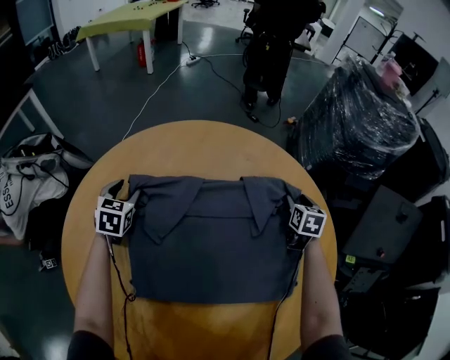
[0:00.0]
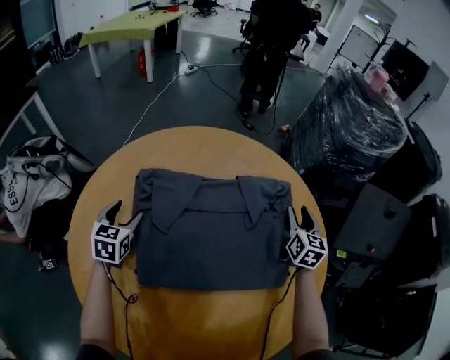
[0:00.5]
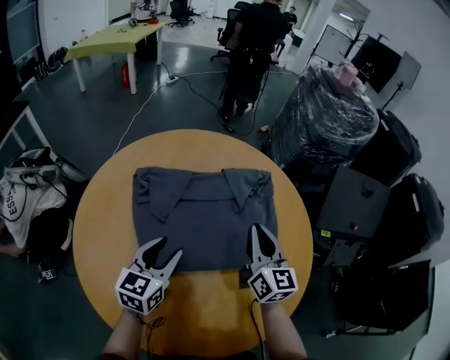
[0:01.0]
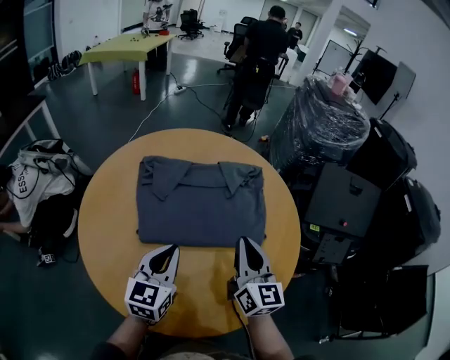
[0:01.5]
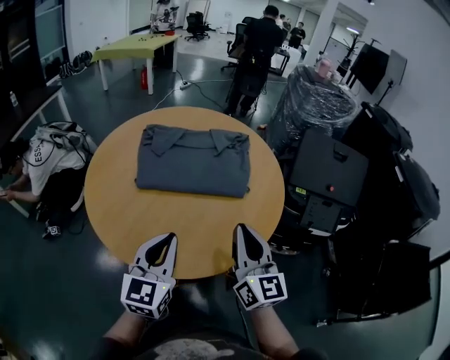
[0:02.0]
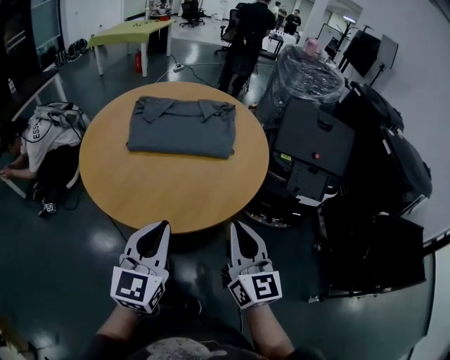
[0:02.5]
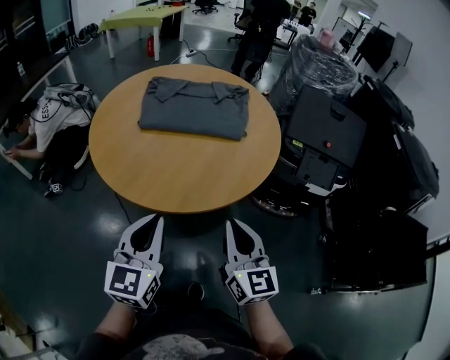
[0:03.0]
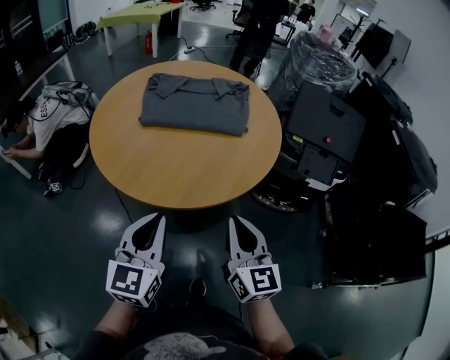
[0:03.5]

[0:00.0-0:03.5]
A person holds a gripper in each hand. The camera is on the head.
0:00.0 to 0:02.0: The pair of grippers is taken backward, some 60 cm. The left gripper tilts its fingers roughly 30 degrees upward, and closes up; the right gripper is displaced upward by about 25 cm, points its fingers about 50 degrees further upward, and closes its fingers.
0:02.0 to 0:03.5: Both grippers travel together backward, about 20 cm.

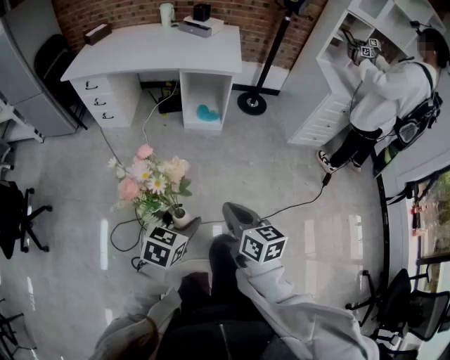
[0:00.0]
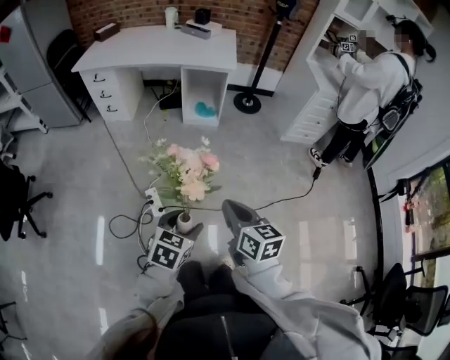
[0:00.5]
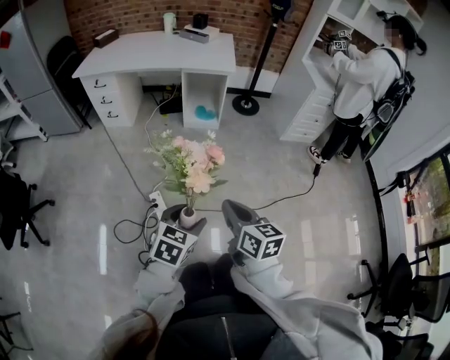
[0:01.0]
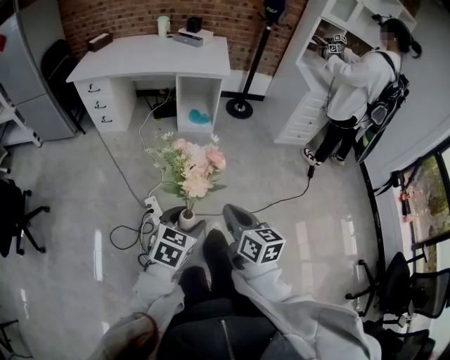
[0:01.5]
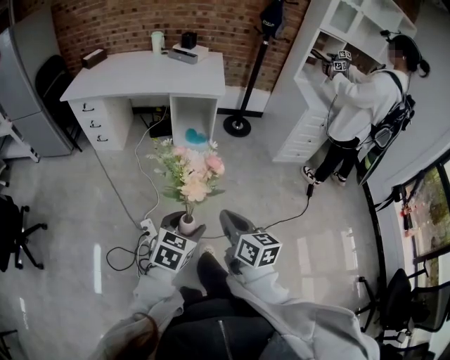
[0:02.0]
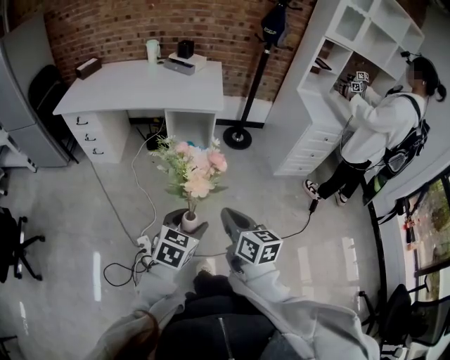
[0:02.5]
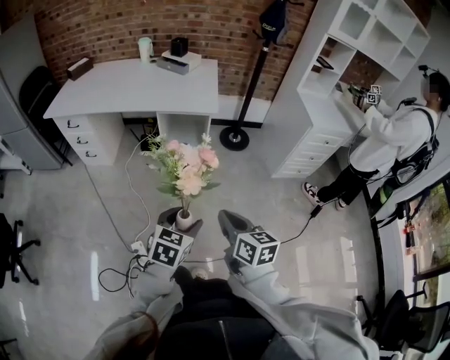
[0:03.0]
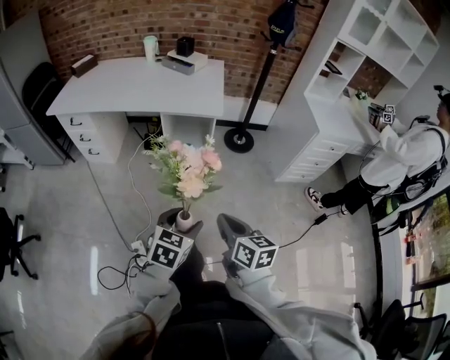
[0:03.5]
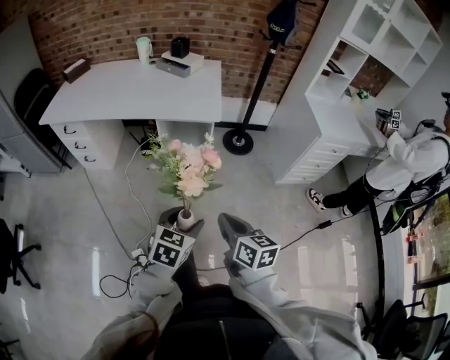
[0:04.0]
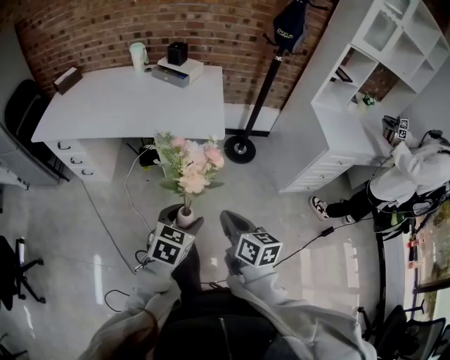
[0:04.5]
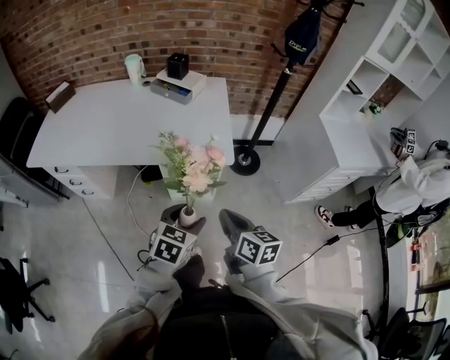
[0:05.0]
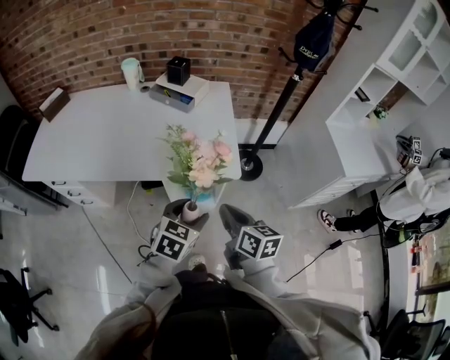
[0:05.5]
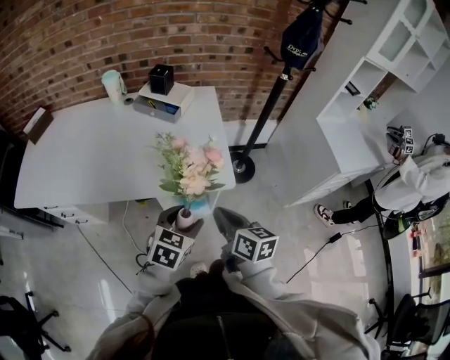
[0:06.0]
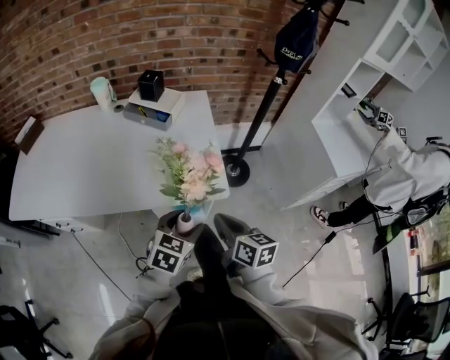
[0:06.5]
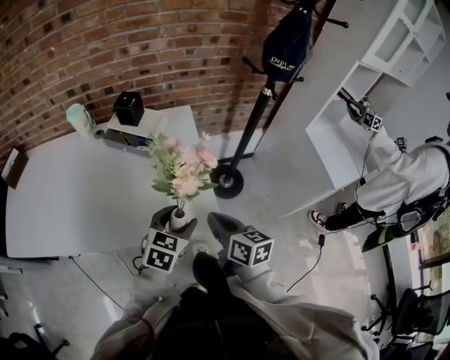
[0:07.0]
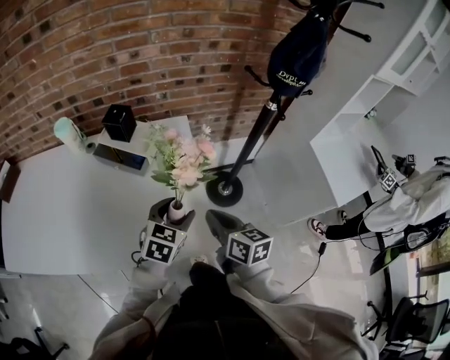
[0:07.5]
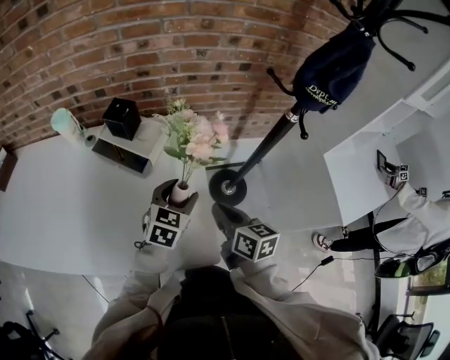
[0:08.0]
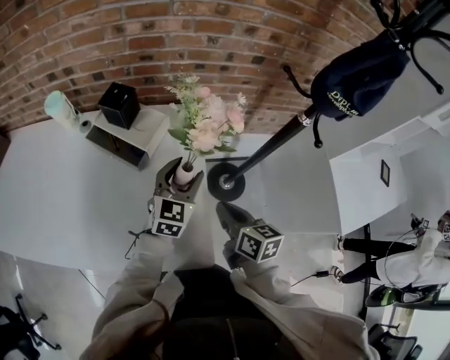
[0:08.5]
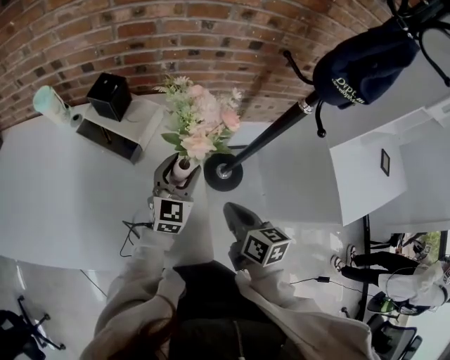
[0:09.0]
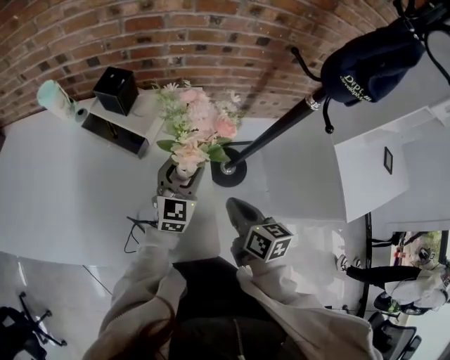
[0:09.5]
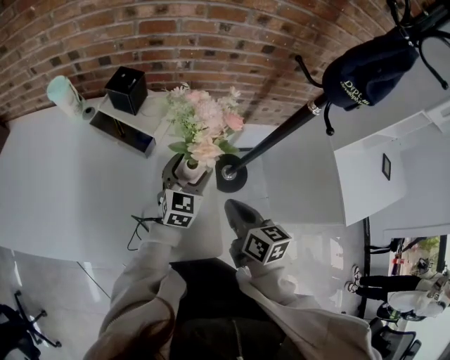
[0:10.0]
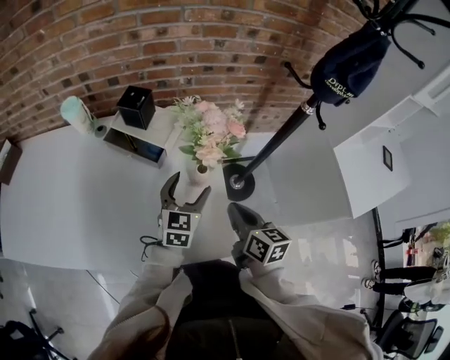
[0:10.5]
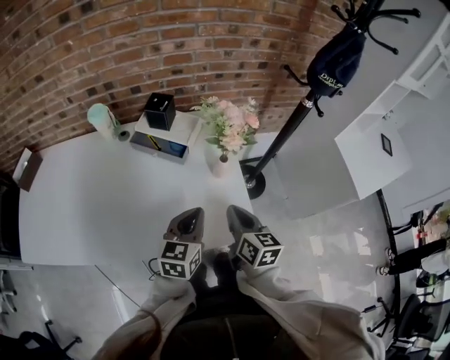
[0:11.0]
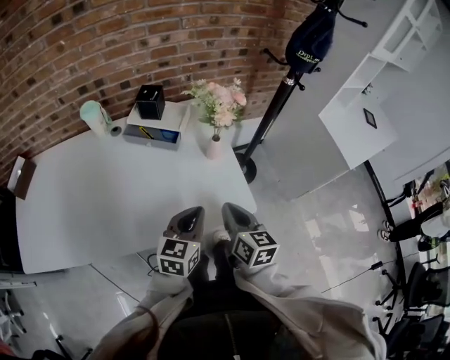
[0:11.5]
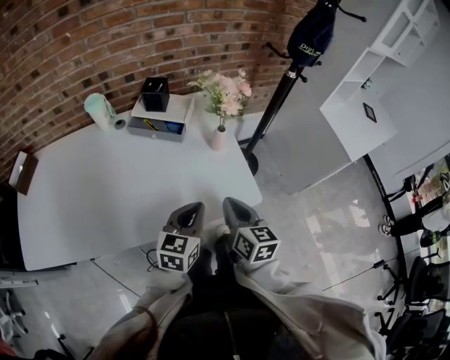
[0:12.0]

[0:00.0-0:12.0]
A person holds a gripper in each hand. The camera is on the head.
0:00.0 to 0:02.0: The left gripper goes backward and returns, about 15 cm each way. The right gripper reaches approximately 15 cm backward, then returns.
0:02.0 to 0:04.0: The two grippers go roughly 30 cm forward.
0:04.0 to 0:06.0: The pair of grippers is taken forward, about 40 cm.
0:06.0 to 0:08.0: Both grippers travel together forward, some 35 cm.
0:08.0 to 0:10.0: The left gripper moves downward and forward, some 10 cm.
0:10.0 to 0:12.0: Both grippers move backward and to the left, about 30 cm. The left gripper rotates some 20 degrees, and closes up; the right gripper turns by roughly 20 degrees.

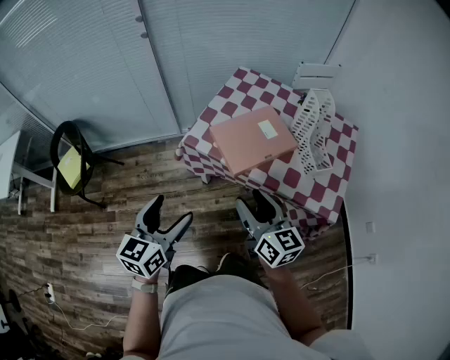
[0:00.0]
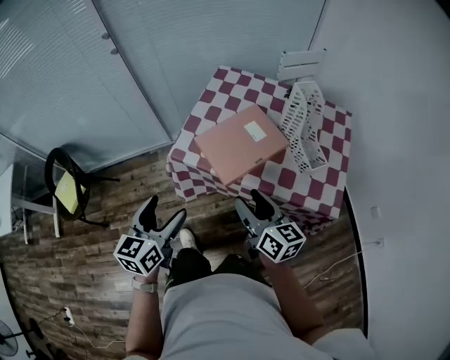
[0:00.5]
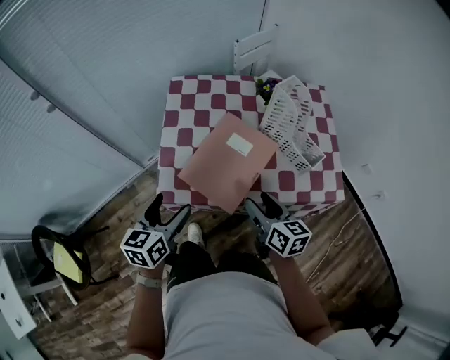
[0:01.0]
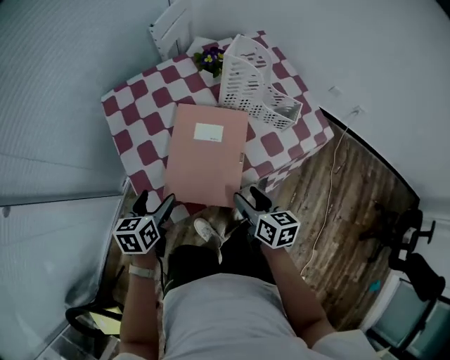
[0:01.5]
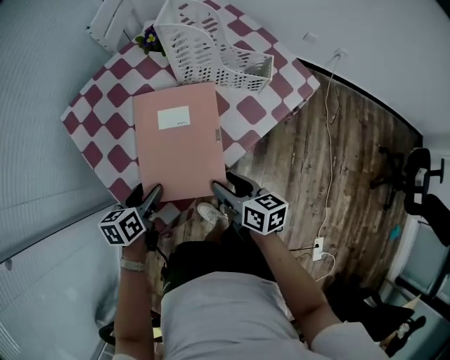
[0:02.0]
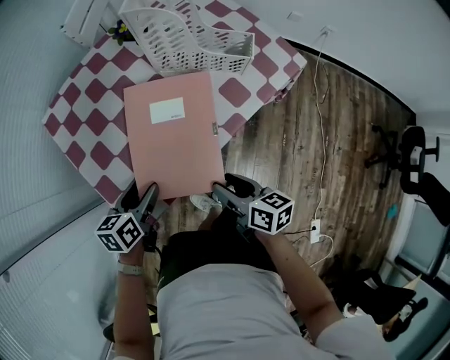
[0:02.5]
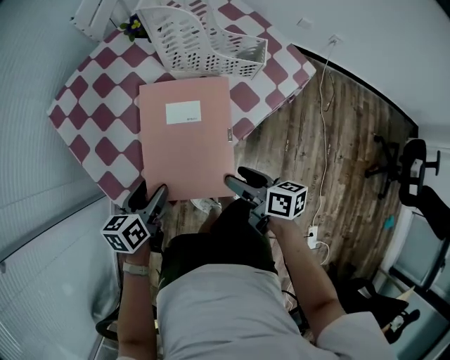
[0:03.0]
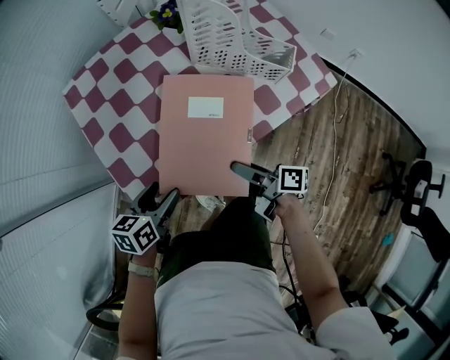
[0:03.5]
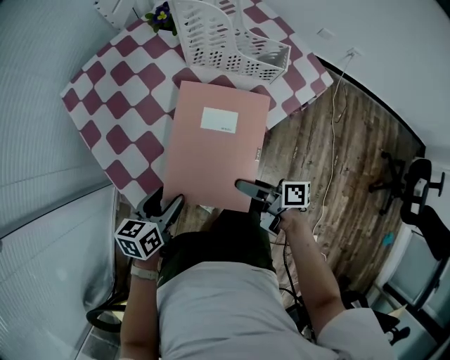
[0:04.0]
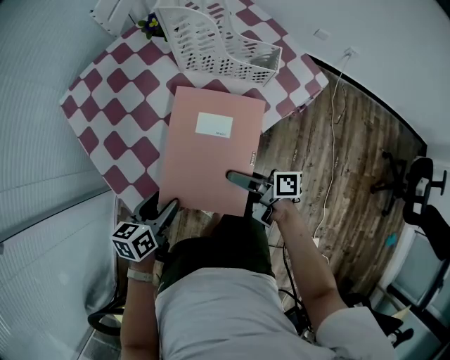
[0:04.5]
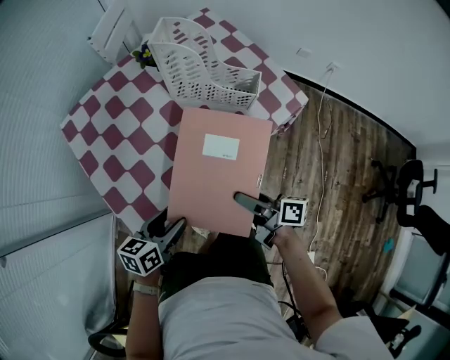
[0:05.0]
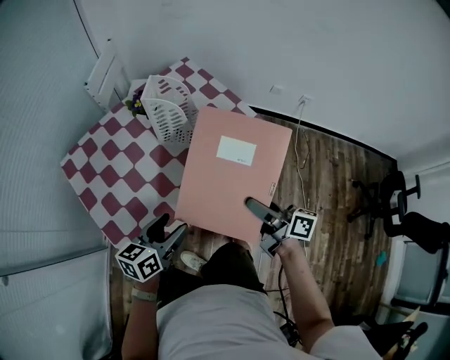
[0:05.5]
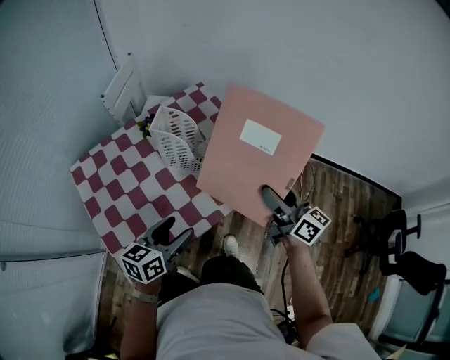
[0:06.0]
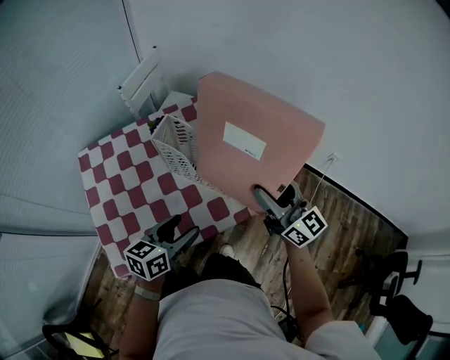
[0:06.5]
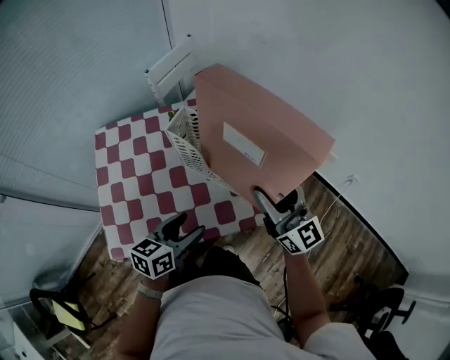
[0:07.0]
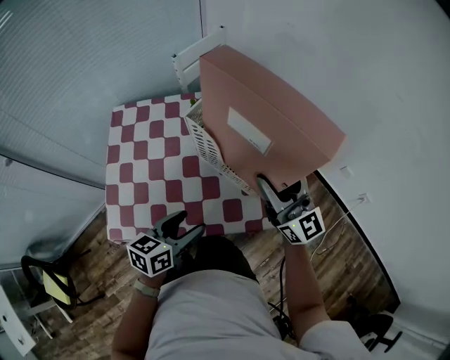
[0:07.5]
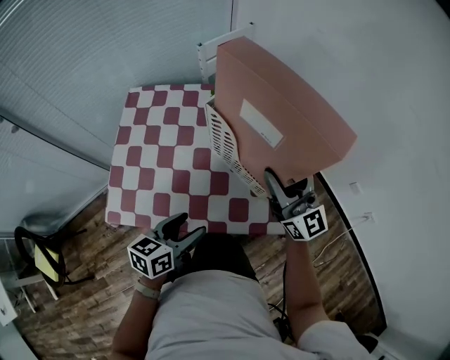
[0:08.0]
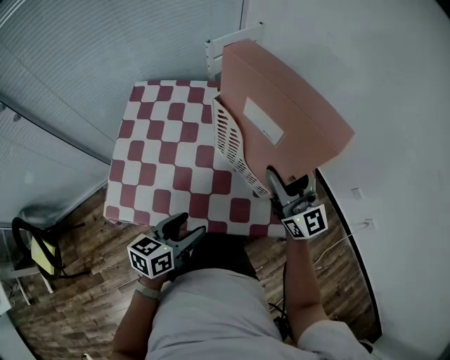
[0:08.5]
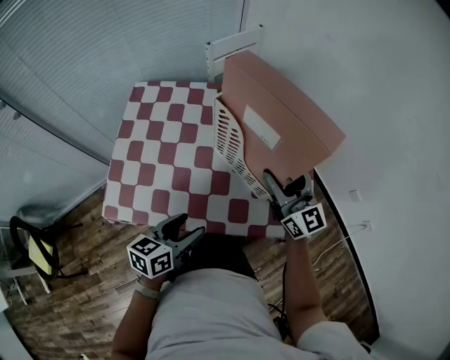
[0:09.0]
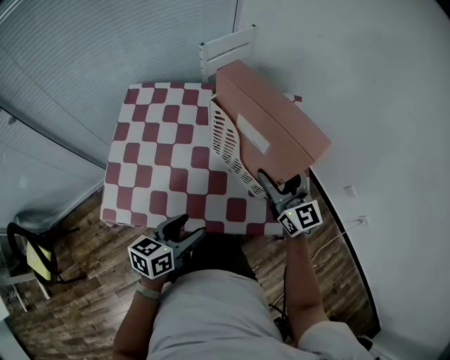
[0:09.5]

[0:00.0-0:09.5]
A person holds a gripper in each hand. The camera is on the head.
0:00.0 to 0:02.0: The right gripper moves downward, some 25 cm, and swivels some 60 degrees; the left gripper moves approximately 50 cm, and changes its angle by some 70 degrees.
0:02.0 to 0:04.0: The right gripper swings forward and backward, some 5 cm each way, with 2 reversals, and rotates approximately 50 degrees; the left gripper shifts roughly 10 cm backward and to the right.
0:04.0 to 0:05.5: The right gripper is displaced upward and to the right by about 20 cm, and changes its angle by about 40 degrees; the left gripper is displaced upward, to the right and forward by approximately 15 cm, and rotates about 20 degrees.
0:05.5 to 0:07.5: The left gripper ends up about 15 cm from where it was, and turns by about 30 degrees; the right gripper shifts by some 25 cm, and twists about 50 degrees counterclockwise, seen from behind.
0:07.5 to 0:09.5: The left gripper shifts by about 5 cm; the right gripper travels downward by approximately 10 cm.

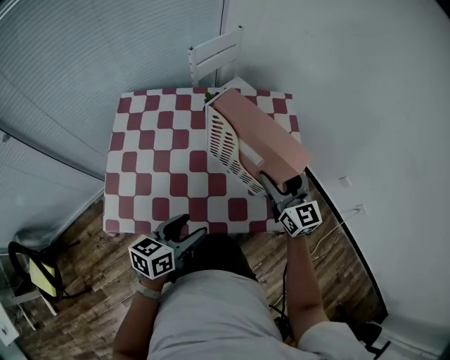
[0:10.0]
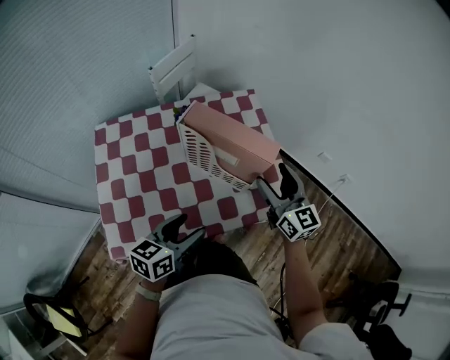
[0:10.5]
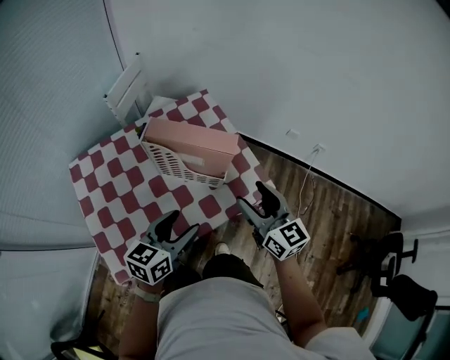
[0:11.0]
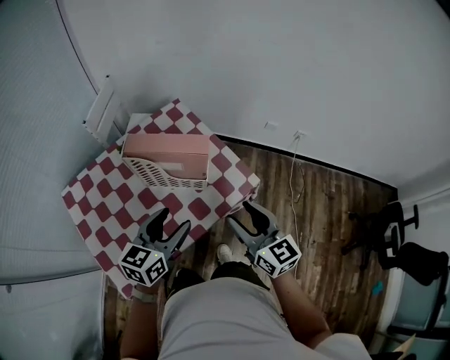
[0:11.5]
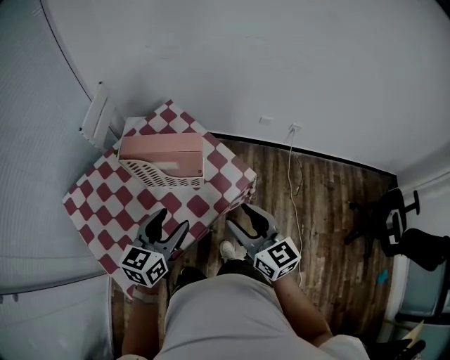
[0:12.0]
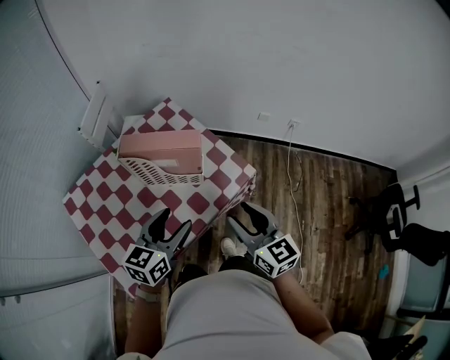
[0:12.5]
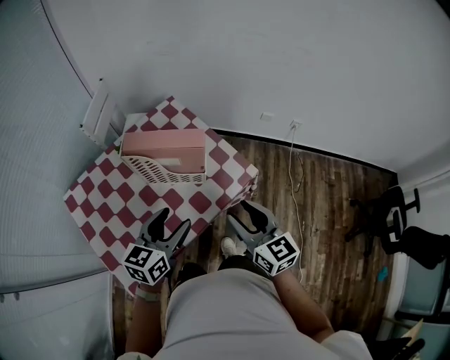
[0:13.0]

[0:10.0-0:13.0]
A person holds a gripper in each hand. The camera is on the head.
0:10.0 to 0:11.5: The left gripper is displaced upward by roughly 15 cm, and changes its angle by approximately 30 degrees. The right gripper ends up some 25 cm from where it was, and rotates approximately 30 degrees.
0:11.5 to 0:13.0: There are only small adjustments of the grippers.
